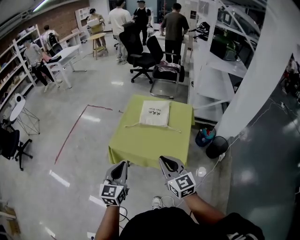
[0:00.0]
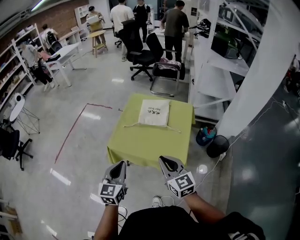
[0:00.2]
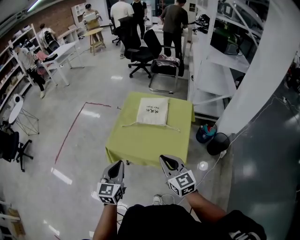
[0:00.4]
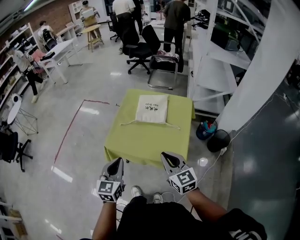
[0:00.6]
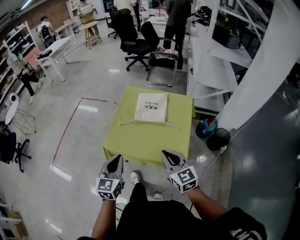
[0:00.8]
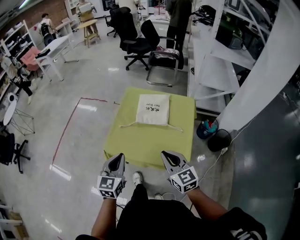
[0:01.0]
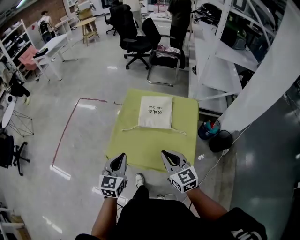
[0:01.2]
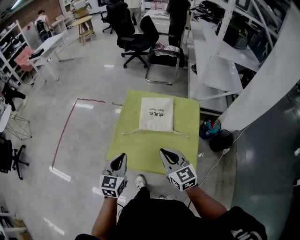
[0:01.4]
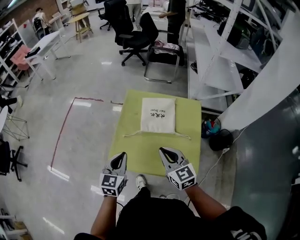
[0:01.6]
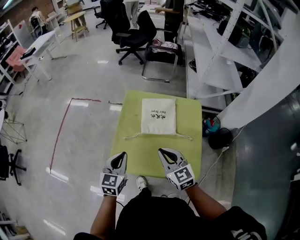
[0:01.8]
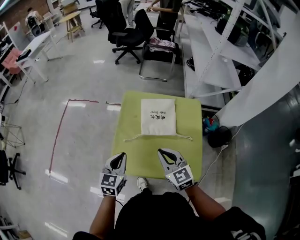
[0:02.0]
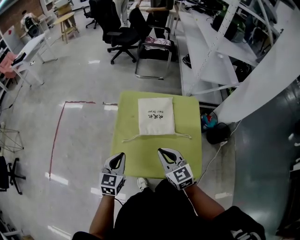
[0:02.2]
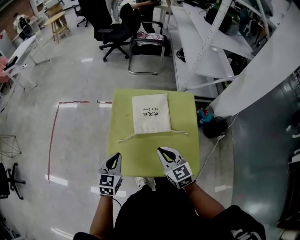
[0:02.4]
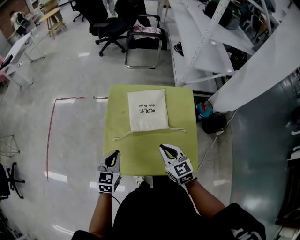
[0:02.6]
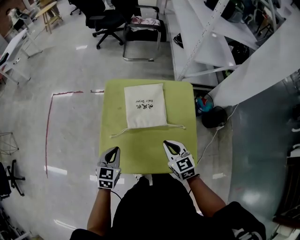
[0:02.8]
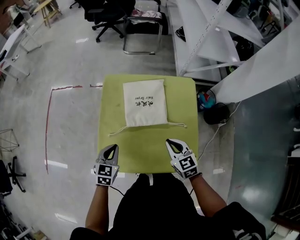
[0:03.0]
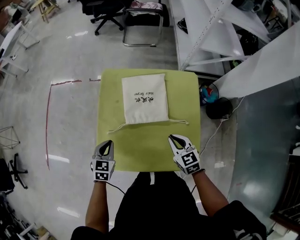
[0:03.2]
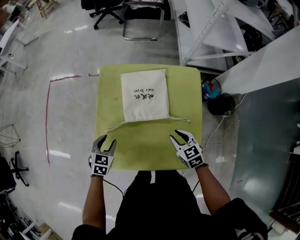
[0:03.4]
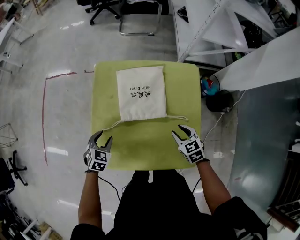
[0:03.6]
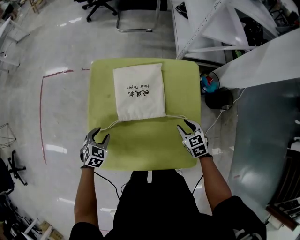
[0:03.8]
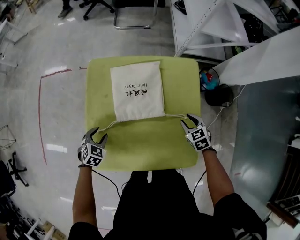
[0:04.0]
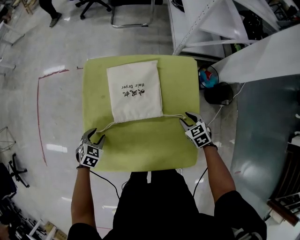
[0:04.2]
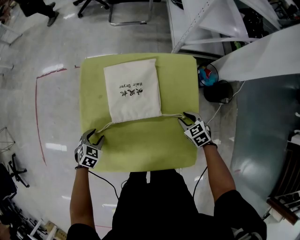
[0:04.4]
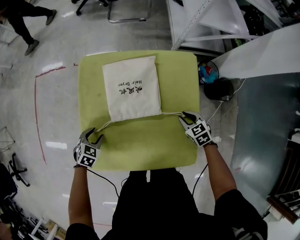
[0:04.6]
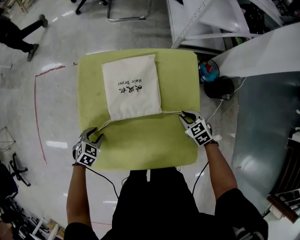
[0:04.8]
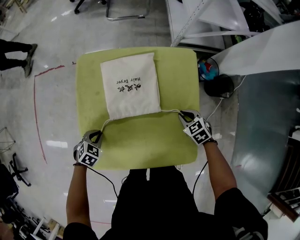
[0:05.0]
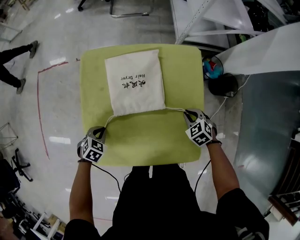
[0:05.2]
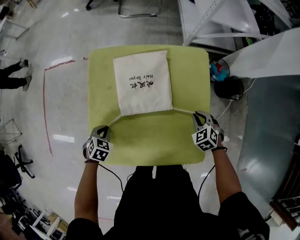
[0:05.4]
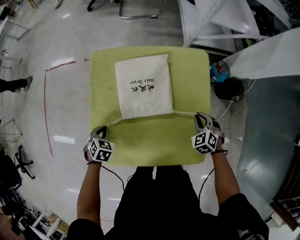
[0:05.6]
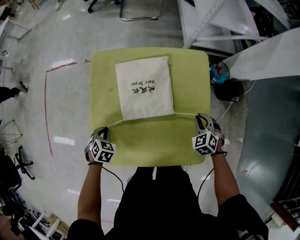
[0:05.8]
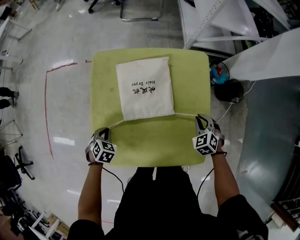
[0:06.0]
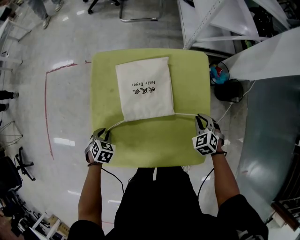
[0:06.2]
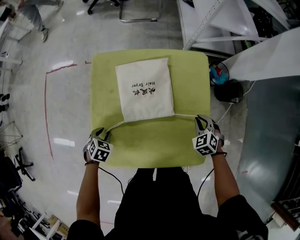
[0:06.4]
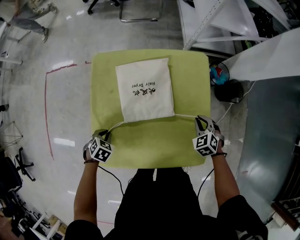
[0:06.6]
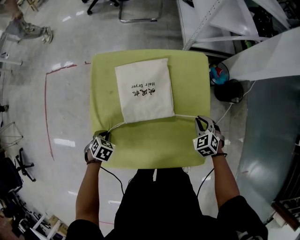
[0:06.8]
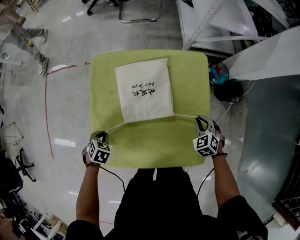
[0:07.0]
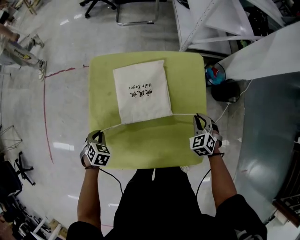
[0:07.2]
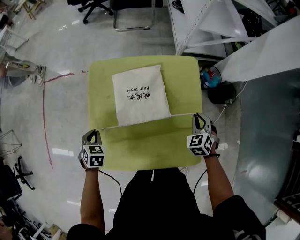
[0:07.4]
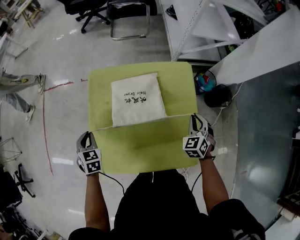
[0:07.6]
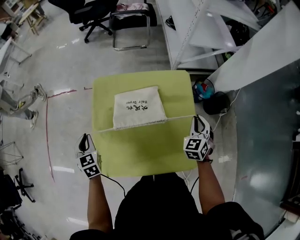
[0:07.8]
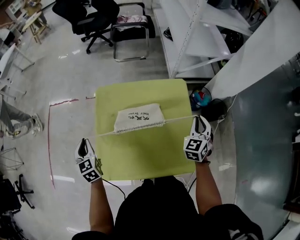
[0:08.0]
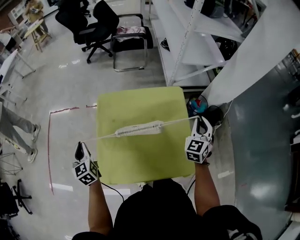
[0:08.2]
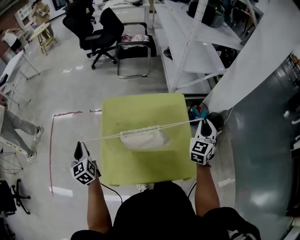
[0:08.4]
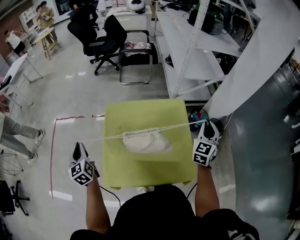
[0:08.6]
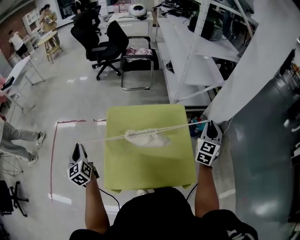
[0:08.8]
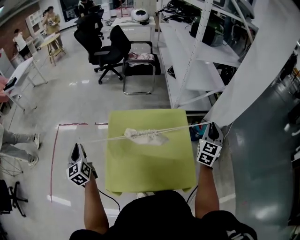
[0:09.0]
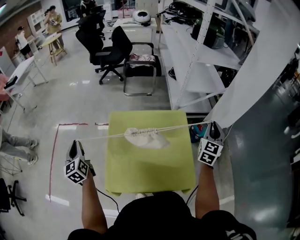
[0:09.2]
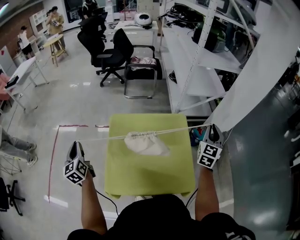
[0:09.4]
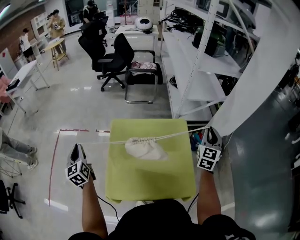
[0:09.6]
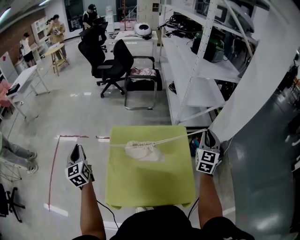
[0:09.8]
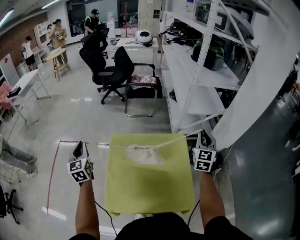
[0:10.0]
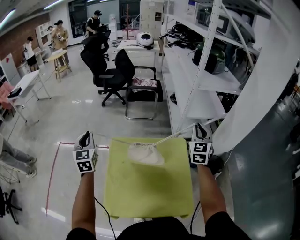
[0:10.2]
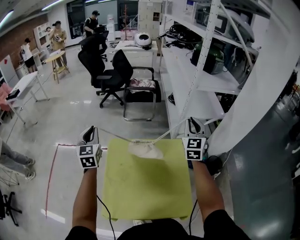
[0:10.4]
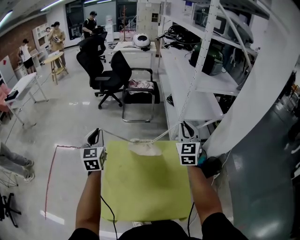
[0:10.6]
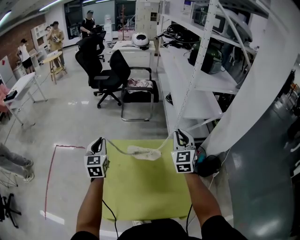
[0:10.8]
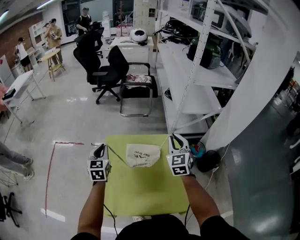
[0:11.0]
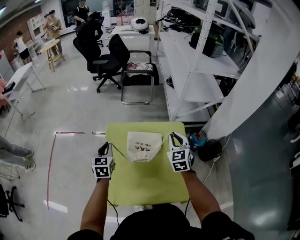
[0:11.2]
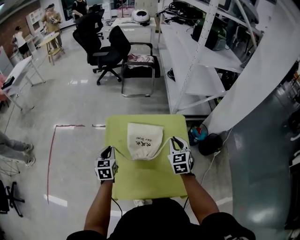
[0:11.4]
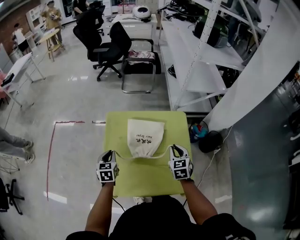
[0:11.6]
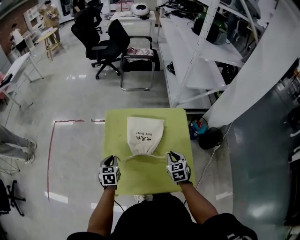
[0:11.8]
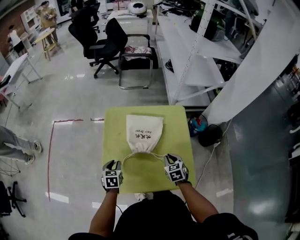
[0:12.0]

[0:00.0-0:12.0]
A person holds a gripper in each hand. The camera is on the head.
0:00.0 to 0:01.6: Both grippers move forward, approximately 25 cm.
0:01.6 to 0:03.0: The right gripper heads downward, to the right and forward, covering roughly 20 cm, and rotates about 20 degrees; the left gripper heads downward and forward, covering some 15 cm, and changes its angle by approximately 20 degrees.
0:03.0 to 0:04.4: The left gripper shifts roughly 15 cm downward, rotates approximately 30 degrees, and opens its fingers. Meanwhile the right gripper goes about 25 cm downward, to the right and forward, rotates some 20 degrees, and opens.
0:04.4 to 0:06.0: The left gripper closes up. The right gripper swivels roughly 20 degrees, and closes its fingers.
0:06.0 to 0:07.6: Both grippers move upward, approximately 10 cm. The right gripper turns by about 20 degrees. Meanwhile the left gripper turns by about 30 degrees.
0:07.6 to 0:09.0: The left gripper moves upward and to the left, approximately 25 cm, and points its fingers about 40 degrees further upward; the right gripper shifts some 25 cm upward, and angles its fingers upward, by approximately 30 degrees.
0:09.0 to 0:10.4: The left gripper moves forward, upward and to the right, roughly 25 cm, and swivels approximately 30 degrees; the right gripper moves forward, to the left and upward, approximately 20 cm, and swivels approximately 20 degrees.
0:10.4 to 0:12.0: Both grippers move downward and backward, approximately 40 cm. The right gripper tilts its fingers approximately 40 degrees downward. Meanwhile the left gripper points its fingers some 40 degrees further downward.

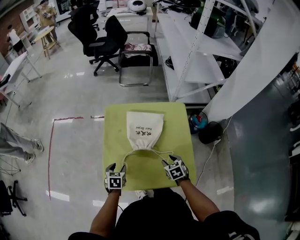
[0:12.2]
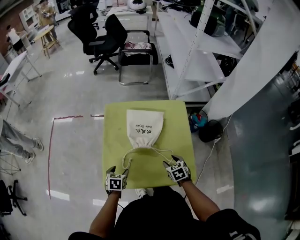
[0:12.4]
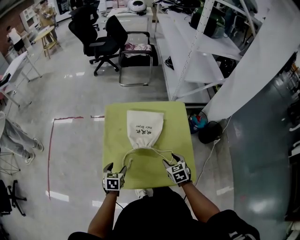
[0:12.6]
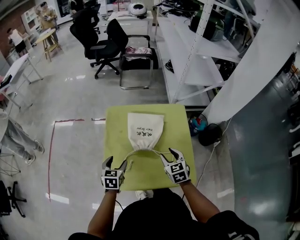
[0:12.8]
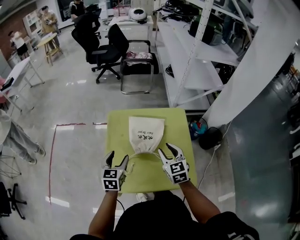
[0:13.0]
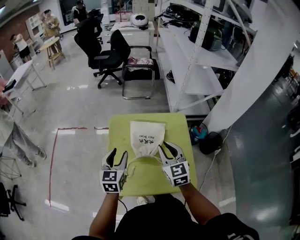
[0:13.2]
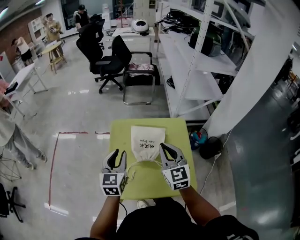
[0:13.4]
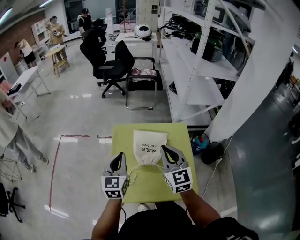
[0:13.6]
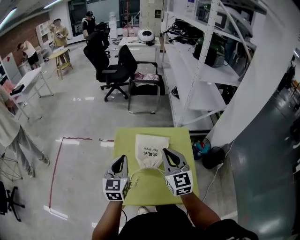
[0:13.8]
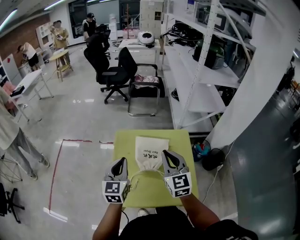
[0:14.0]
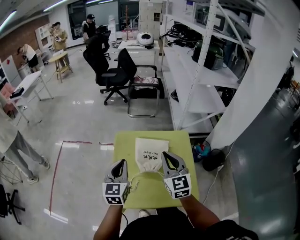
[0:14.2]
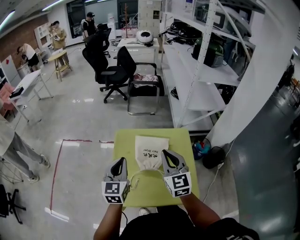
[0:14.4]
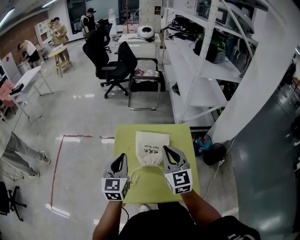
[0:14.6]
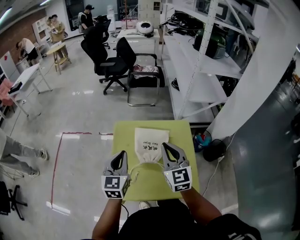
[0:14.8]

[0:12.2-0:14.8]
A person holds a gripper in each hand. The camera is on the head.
0:12.2 to 0:13.4: The two grippers go about 30 cm upward. The left gripper tips its fingers upward by about 40 degrees; the right gripper points its fingers about 50 degrees further upward, and closes up.
0:13.4 to 0:14.8: The left gripper closes up.

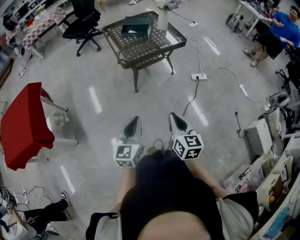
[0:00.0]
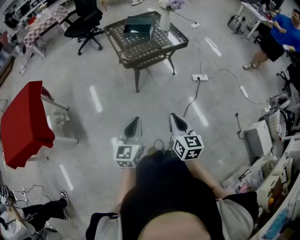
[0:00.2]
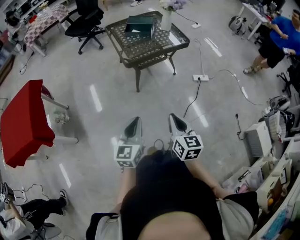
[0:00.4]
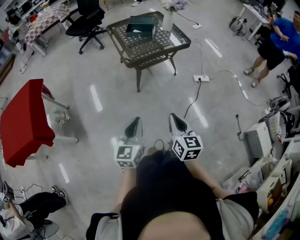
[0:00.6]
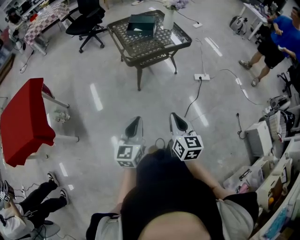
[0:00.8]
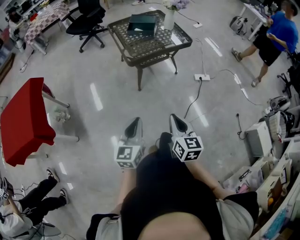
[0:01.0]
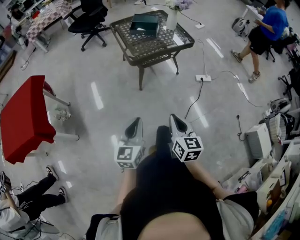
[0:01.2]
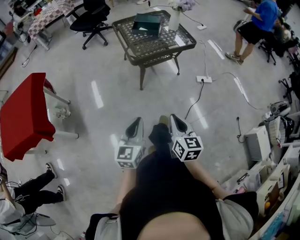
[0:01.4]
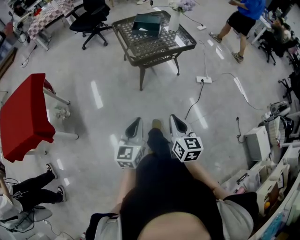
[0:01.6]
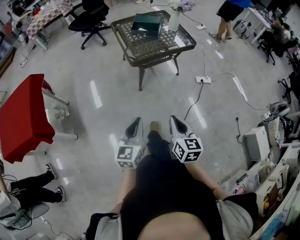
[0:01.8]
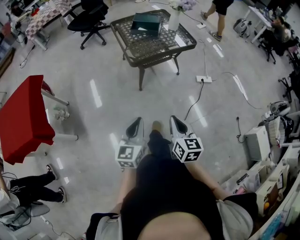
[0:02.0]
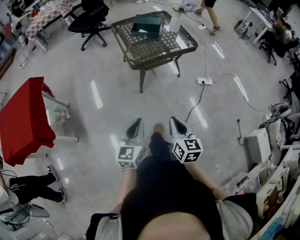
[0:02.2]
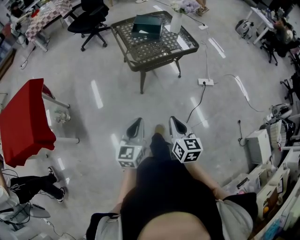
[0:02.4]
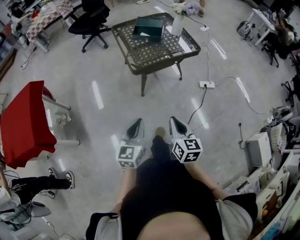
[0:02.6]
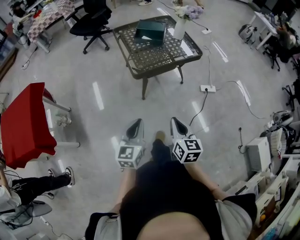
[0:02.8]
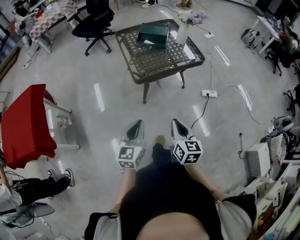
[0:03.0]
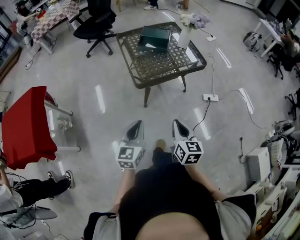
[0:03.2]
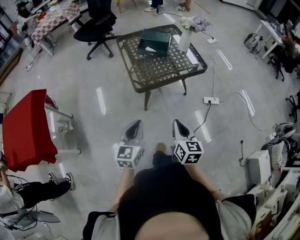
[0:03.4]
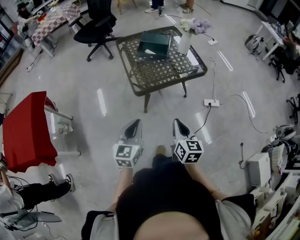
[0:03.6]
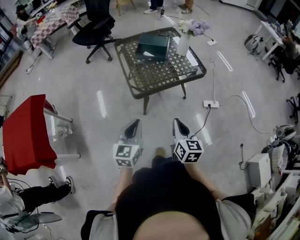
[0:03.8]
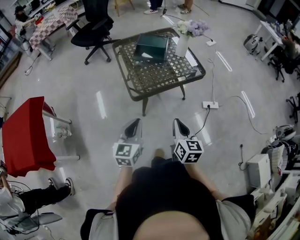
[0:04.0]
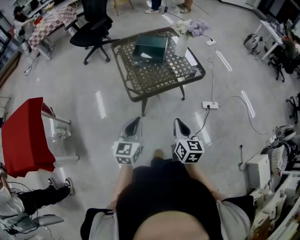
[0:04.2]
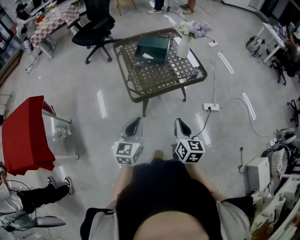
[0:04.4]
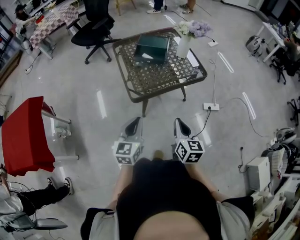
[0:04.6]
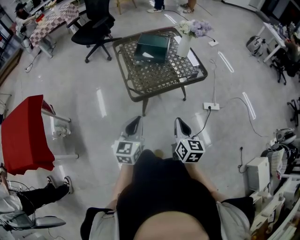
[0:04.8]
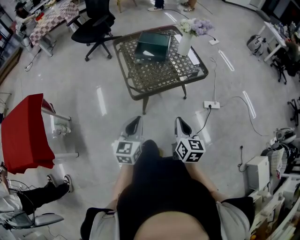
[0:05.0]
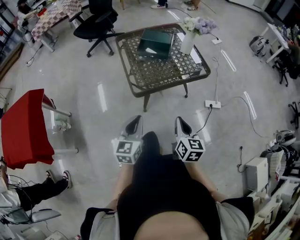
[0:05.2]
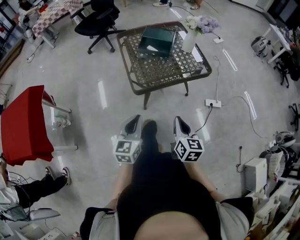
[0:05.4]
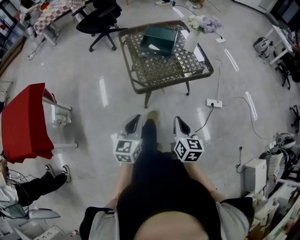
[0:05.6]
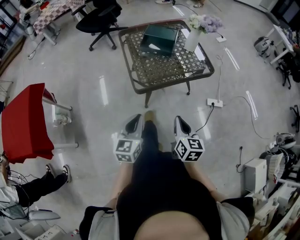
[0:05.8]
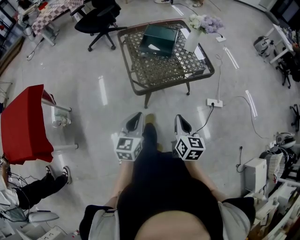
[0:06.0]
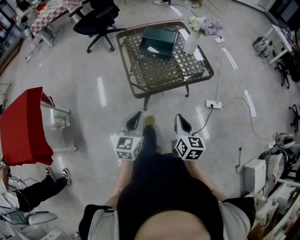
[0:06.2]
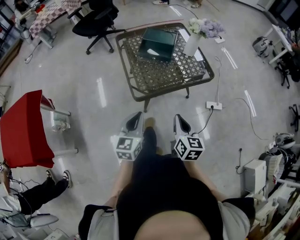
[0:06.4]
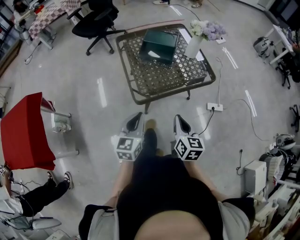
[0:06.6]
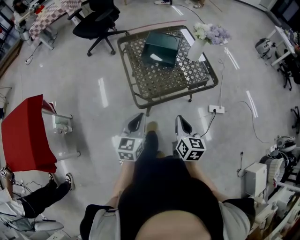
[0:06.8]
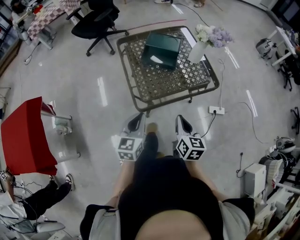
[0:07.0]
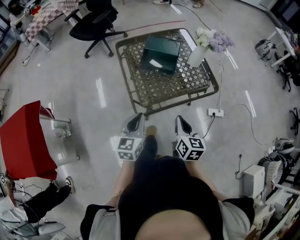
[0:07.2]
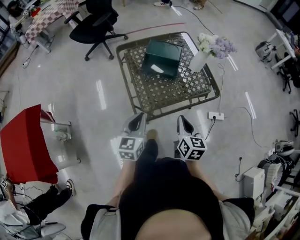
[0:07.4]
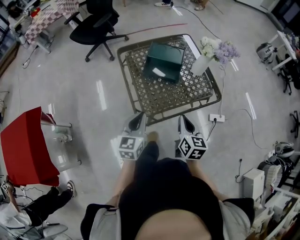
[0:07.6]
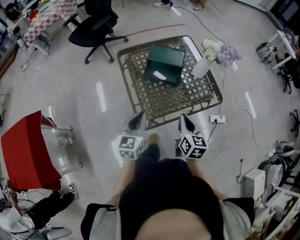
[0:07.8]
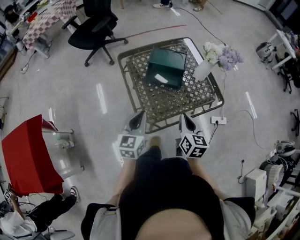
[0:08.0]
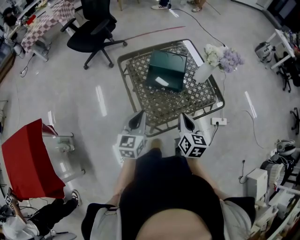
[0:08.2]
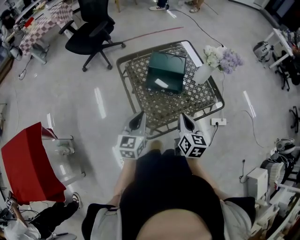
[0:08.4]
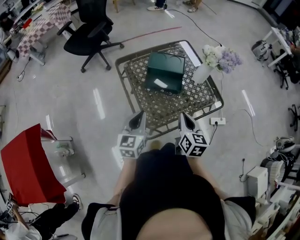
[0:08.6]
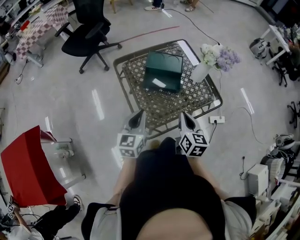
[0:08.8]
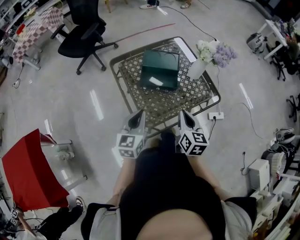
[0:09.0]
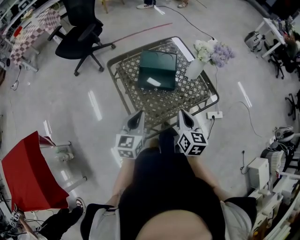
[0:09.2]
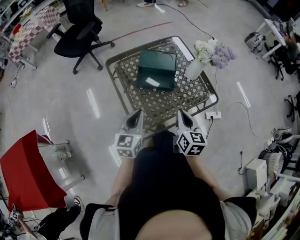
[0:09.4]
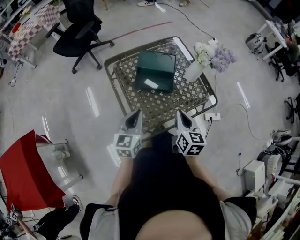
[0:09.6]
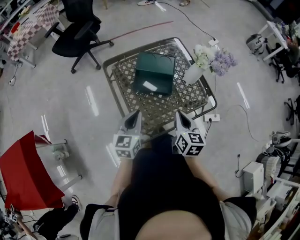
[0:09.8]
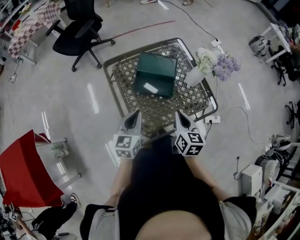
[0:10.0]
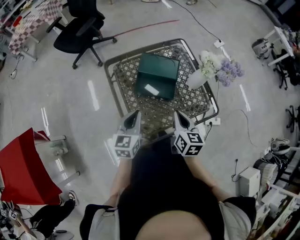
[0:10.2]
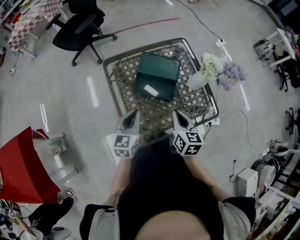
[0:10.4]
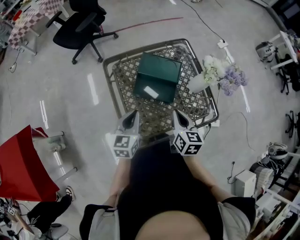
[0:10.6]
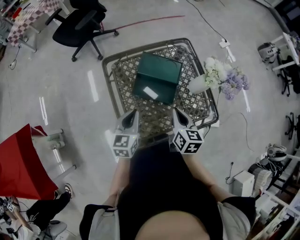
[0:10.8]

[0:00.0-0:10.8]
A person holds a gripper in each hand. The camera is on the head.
0:00.0 to 0:01.6: The grippers stay close to where they were, moving slightly.
0:01.6 to 0:03.0: Both grippers move forward, roughly 15 cm.
0:03.0 to 0:04.6: The grippers both shift forward by roughly 15 cm.
0:04.6 to 0:06.2: The grippers move only a little.
0:06.2 to 0:07.8: Both grippers travel together forward, approximately 20 cm.
0:07.8 to 0:09.2: Both grippers travel together forward, approximately 5 cm.
0:09.2 to 0:10.8: Both grippers travel together forward, about 15 cm.